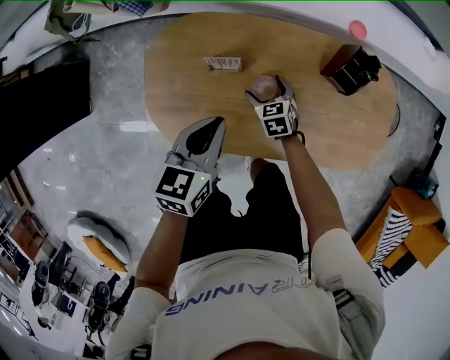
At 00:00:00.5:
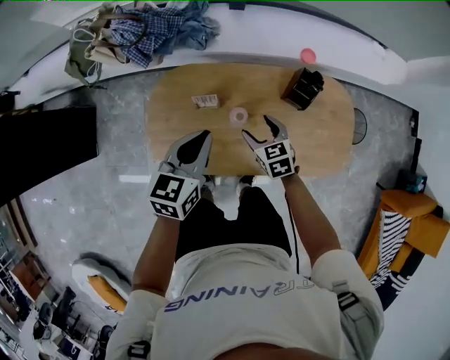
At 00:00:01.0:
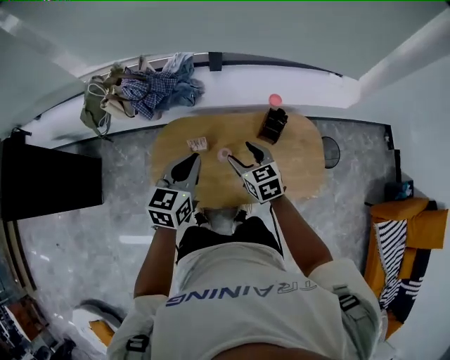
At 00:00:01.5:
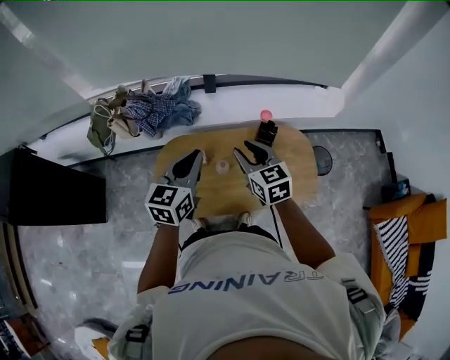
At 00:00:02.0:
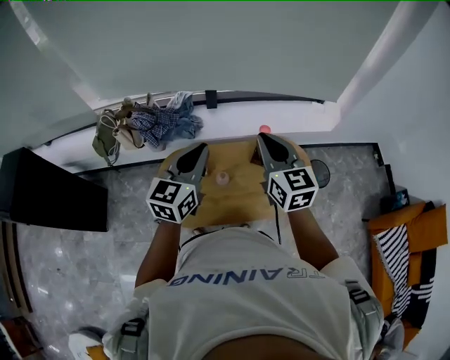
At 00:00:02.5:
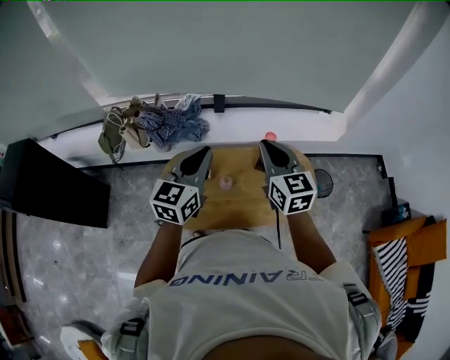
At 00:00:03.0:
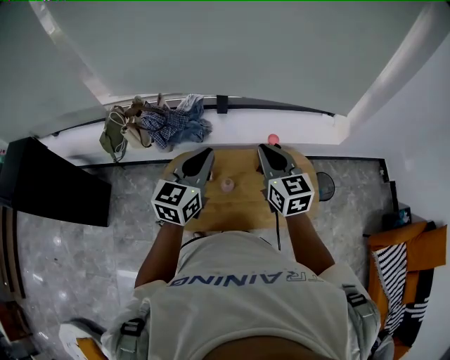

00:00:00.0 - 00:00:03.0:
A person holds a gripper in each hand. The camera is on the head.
00:00:00.0 - 00:00:01.5: The right gripper travels upward by about 50 cm, tips its fingers upward by some 30 degrees, and closes. The left gripper shifts about 35 cm upward, and changes its angle by some 30 degrees.
00:00:01.5 - 00:00:03.0: The two grippers go about 10 cm upward.

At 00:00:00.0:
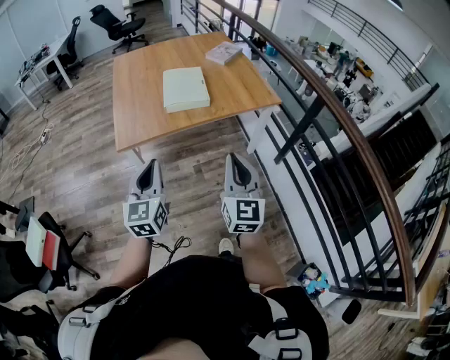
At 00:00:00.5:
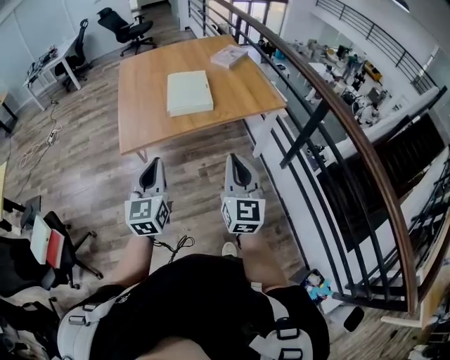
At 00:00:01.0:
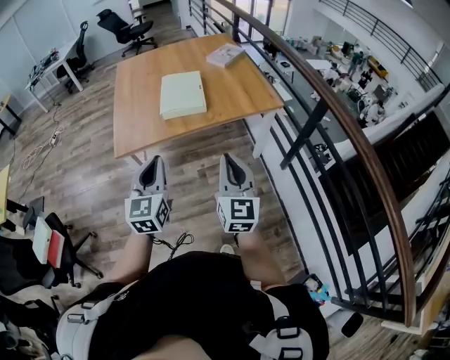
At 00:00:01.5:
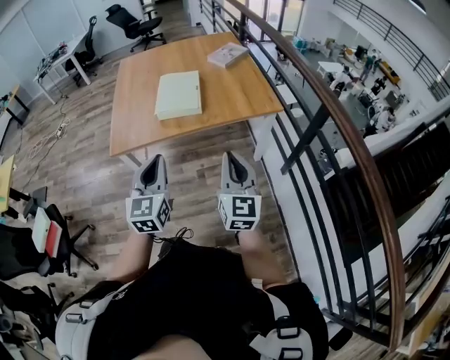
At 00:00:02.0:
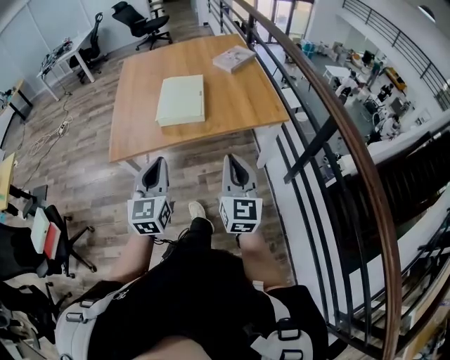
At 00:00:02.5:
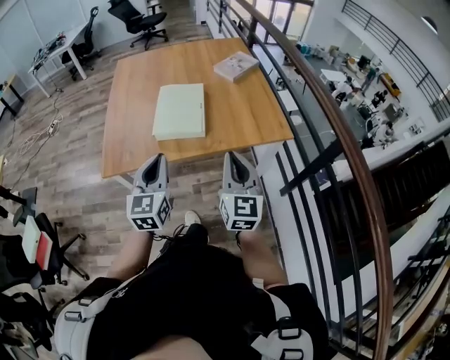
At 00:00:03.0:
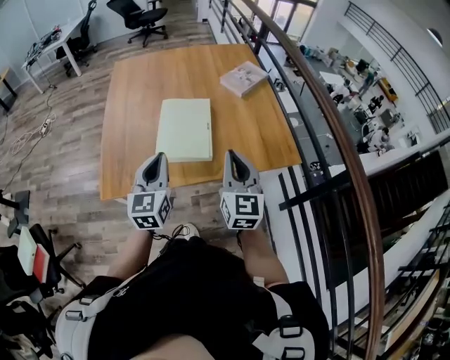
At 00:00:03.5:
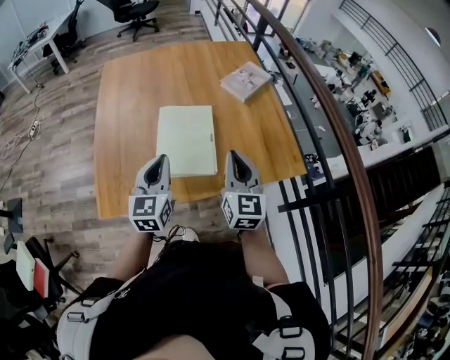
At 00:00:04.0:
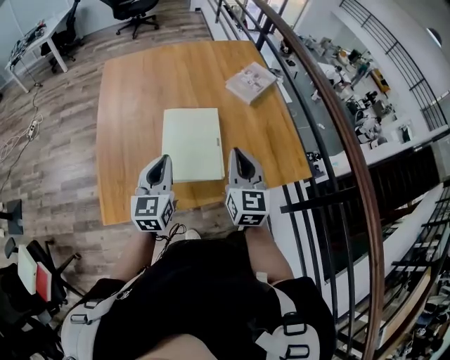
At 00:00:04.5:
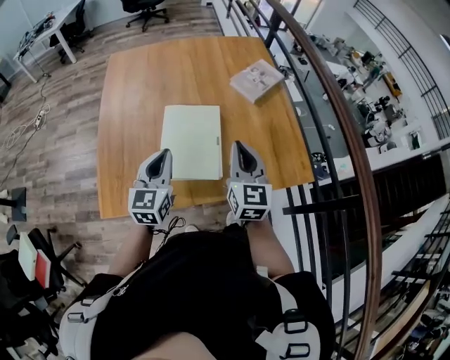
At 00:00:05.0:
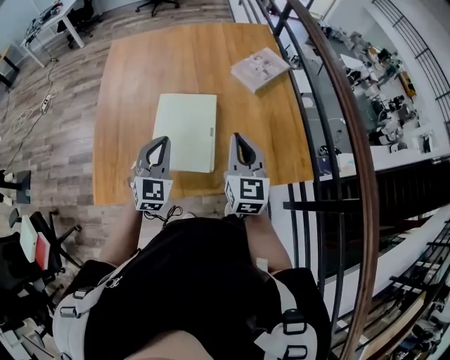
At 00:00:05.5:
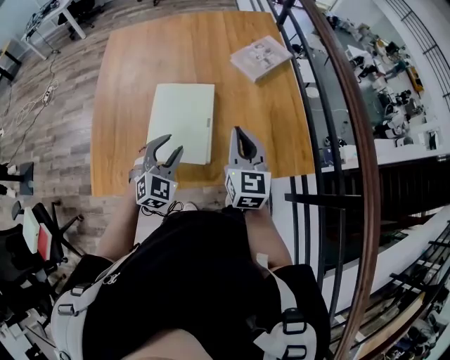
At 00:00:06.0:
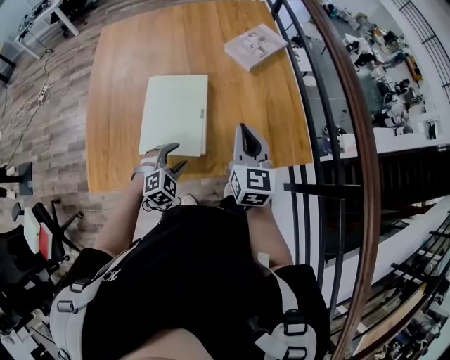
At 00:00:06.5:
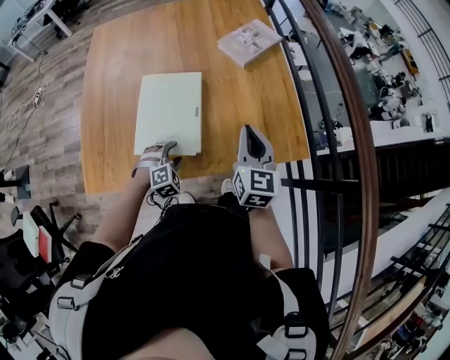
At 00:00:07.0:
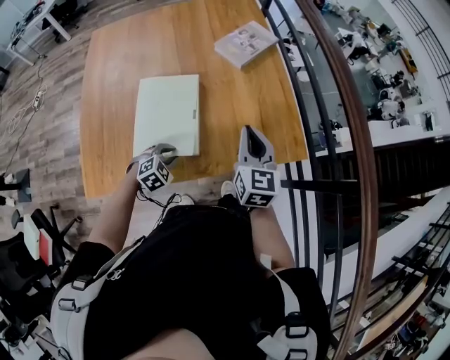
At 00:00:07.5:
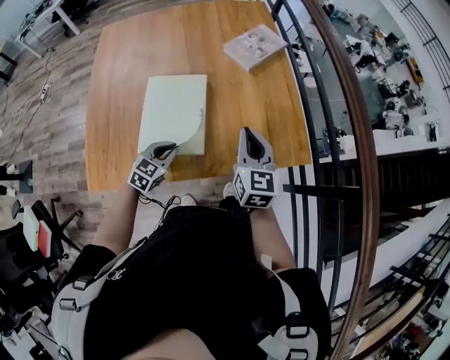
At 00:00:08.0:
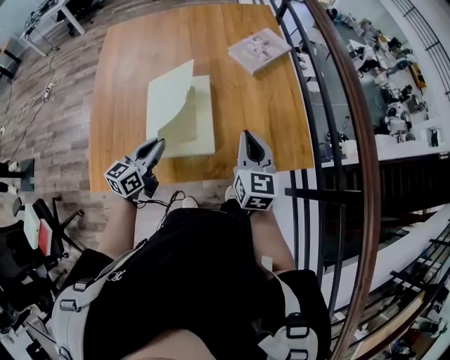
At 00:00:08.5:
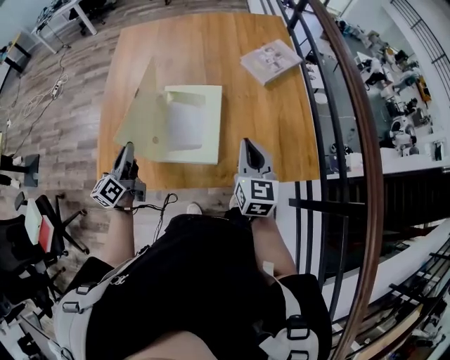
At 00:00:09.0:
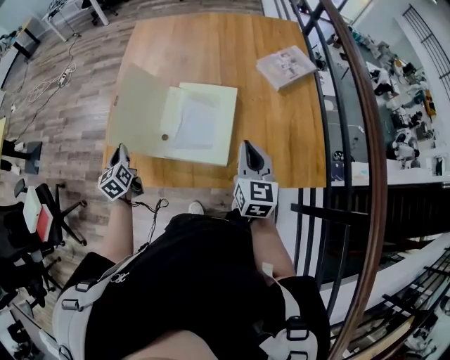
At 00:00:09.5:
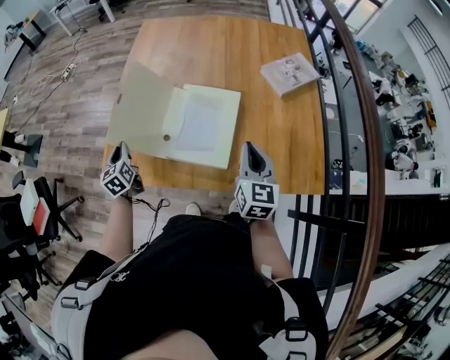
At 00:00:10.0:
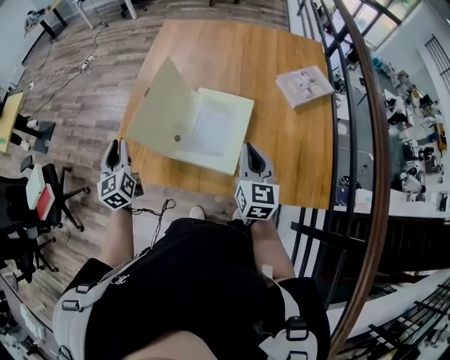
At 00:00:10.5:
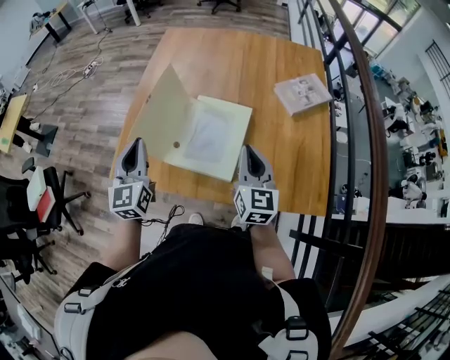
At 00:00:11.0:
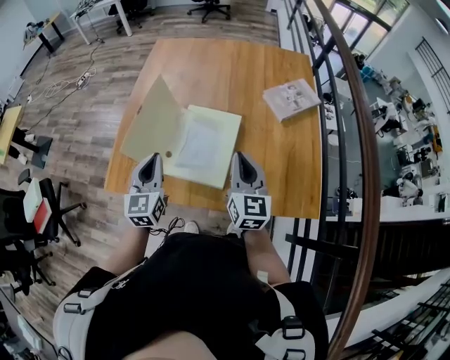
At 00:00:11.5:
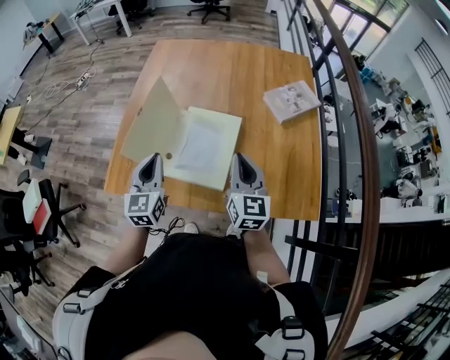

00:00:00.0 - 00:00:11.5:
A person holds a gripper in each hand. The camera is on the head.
00:00:00.0 - 00:00:02.0: The right gripper is displaced forward and to the right by roughly 20 cm. Meanwhile the left gripper shifts about 20 cm to the right and forward.
00:00:02.0 - 00:00:04.0: The grippers both shift forward by some 35 cm.
00:00:04.0 - 00:00:06.0: The left gripper moves downward and to the right, roughly 25 cm, angles its fingers downward, by about 40 degrees, and opens its fingers, while the right gripper travels to the right and downward by roughly 10 cm.
00:00:06.0 - 00:00:07.5: The left gripper swivels roughly 30 degrees, and closes its fingers.
00:00:07.5 - 00:00:09.5: The right gripper ends up roughly 10 cm from where it was; the left gripper shifts by approximately 30 cm, and swivels about 70 degrees.
00:00:09.5 - 00:00:11.5: The left gripper moves to the right and upward, some 25 cm, and changes its angle by approximately 30 degrees.

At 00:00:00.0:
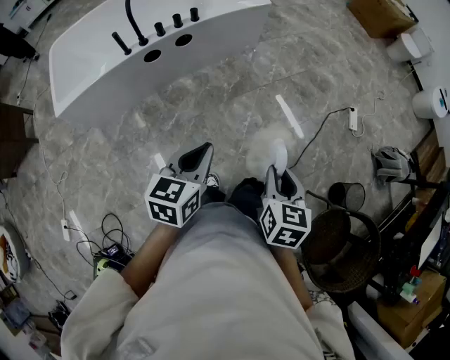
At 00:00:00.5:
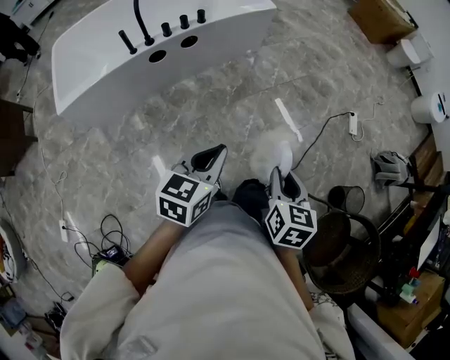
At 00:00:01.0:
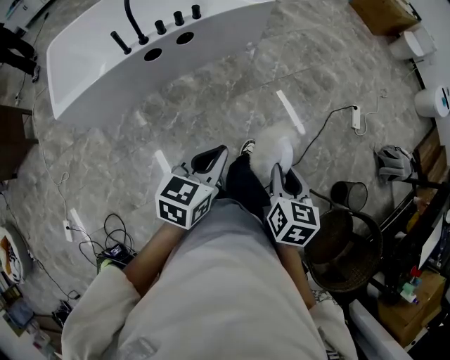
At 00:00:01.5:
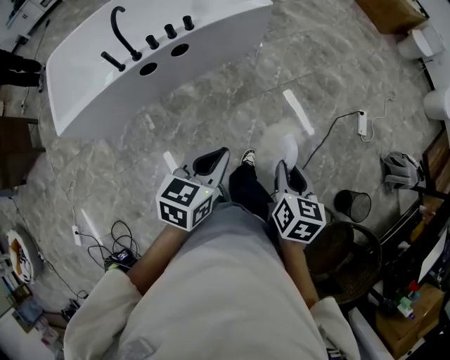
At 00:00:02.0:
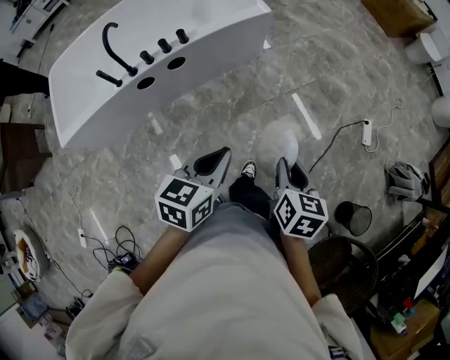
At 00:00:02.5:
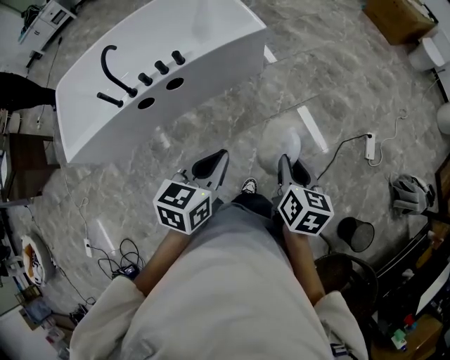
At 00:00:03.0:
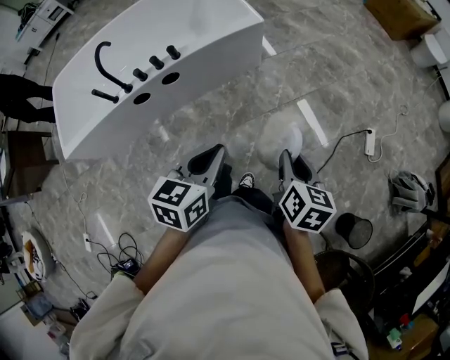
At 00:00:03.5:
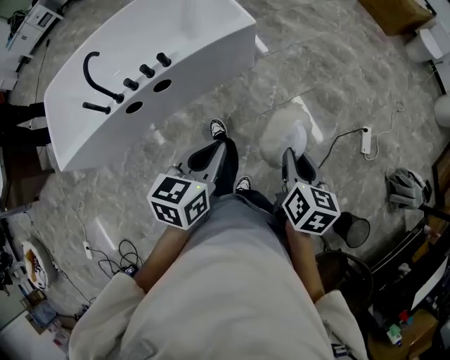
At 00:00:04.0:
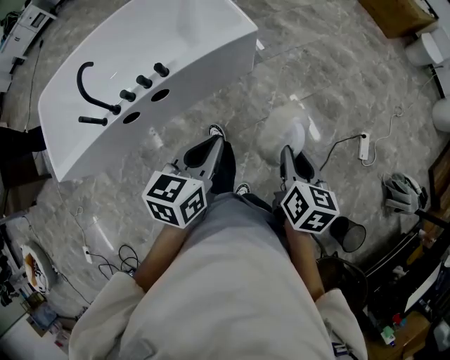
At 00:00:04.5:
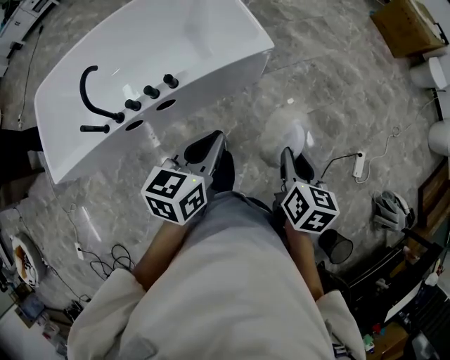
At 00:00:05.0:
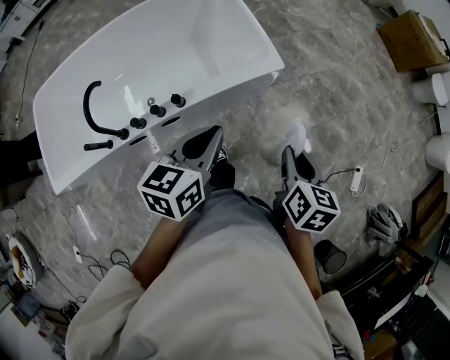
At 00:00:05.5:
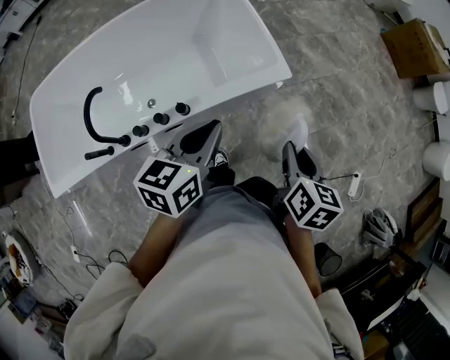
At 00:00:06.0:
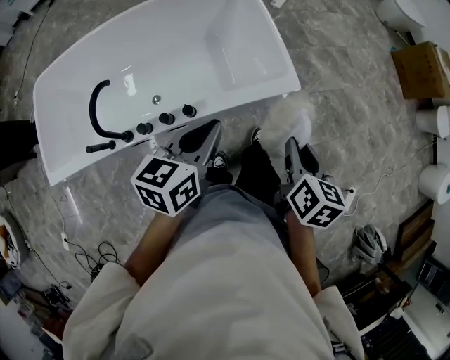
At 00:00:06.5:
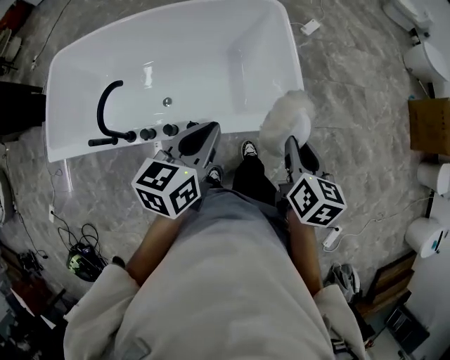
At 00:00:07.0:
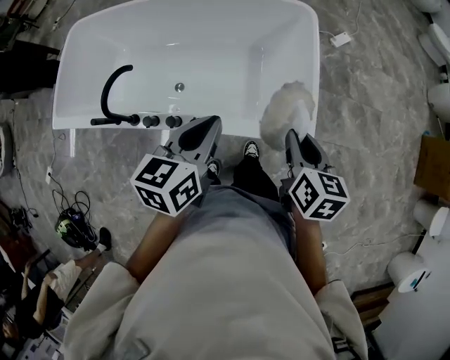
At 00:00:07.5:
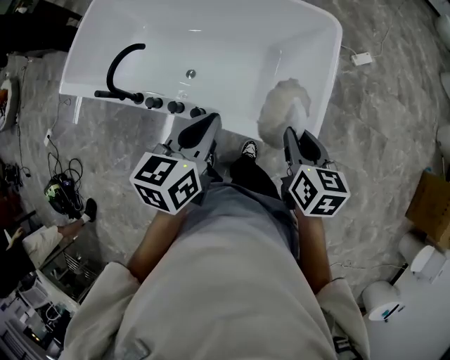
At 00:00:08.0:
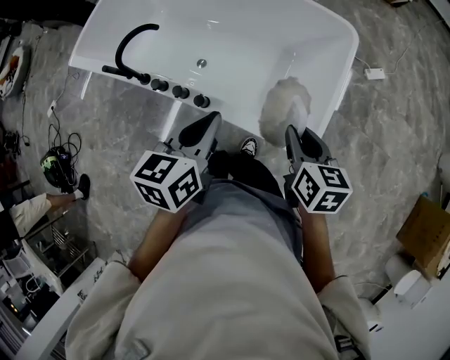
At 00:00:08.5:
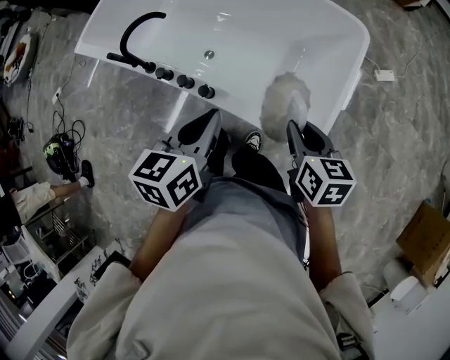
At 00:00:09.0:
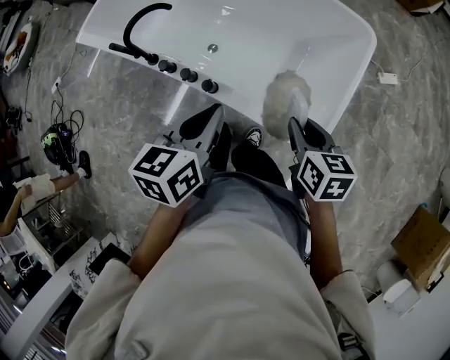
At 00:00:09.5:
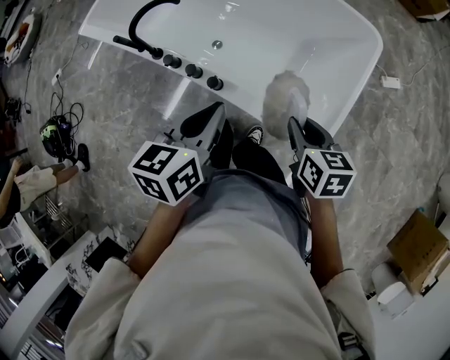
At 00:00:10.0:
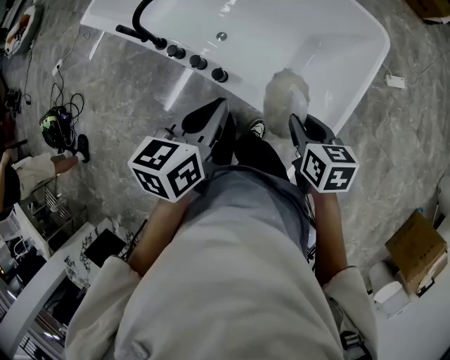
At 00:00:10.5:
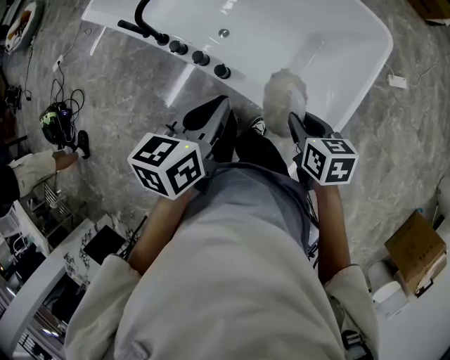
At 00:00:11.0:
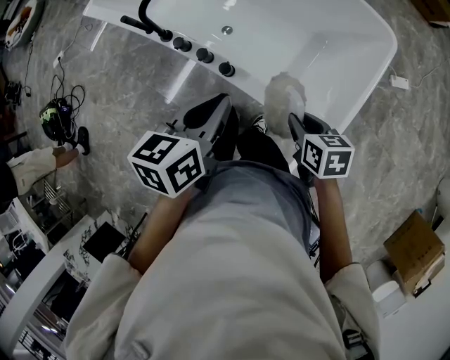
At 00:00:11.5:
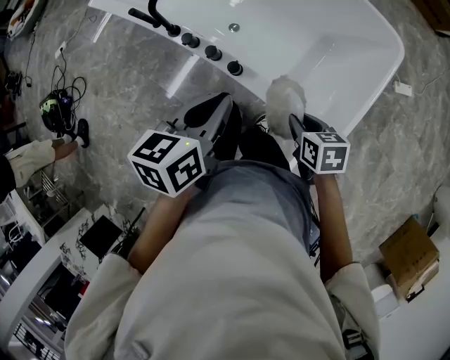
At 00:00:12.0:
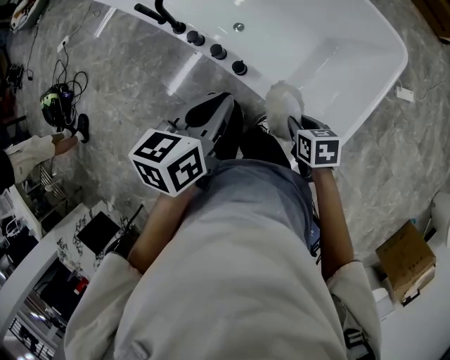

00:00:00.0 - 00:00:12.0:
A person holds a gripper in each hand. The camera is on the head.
00:00:00.0 - 00:00:02.0: The two grippers go about 25 cm forward.
00:00:02.0 - 00:00:04.0: The grippers both shift forward by about 20 cm.
00:00:04.0 - 00:00:06.0: The two grippers go approximately 35 cm forward and to the left.
00:00:06.0 - 00:00:08.0: The right gripper ends up approximately 25 cm from where it was, and rotates approximately 60 degrees. The left gripper moves approximately 10 cm, and swivels about 50 degrees.
00:00:08.0 - 00:00:10.0: The right gripper is displaced downward and to the left by some 10 cm; the left gripper shifts by roughly 5 cm.
00:00:10.0 - 00:00:12.0: The left gripper shifts by some 5 cm; the right gripper travels downward by approximately 10 cm.
